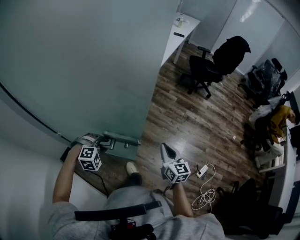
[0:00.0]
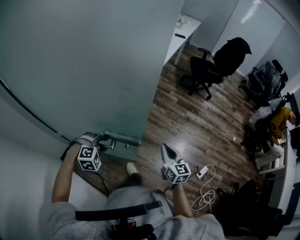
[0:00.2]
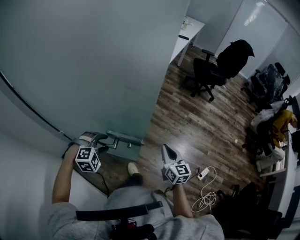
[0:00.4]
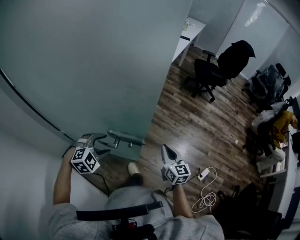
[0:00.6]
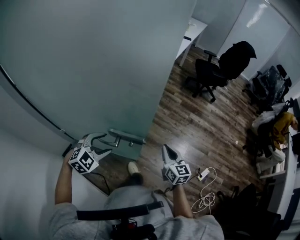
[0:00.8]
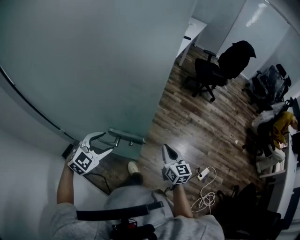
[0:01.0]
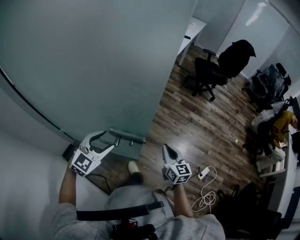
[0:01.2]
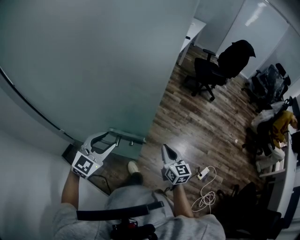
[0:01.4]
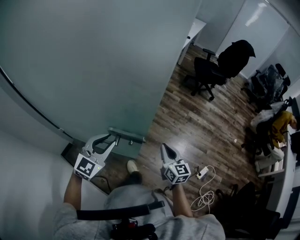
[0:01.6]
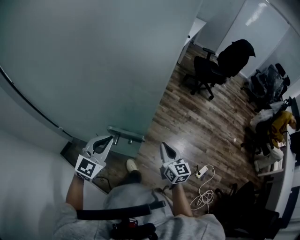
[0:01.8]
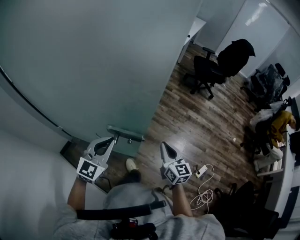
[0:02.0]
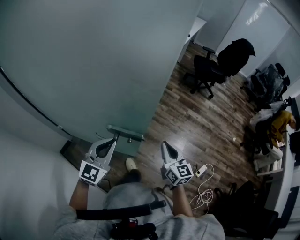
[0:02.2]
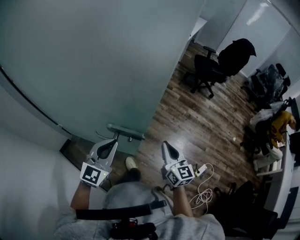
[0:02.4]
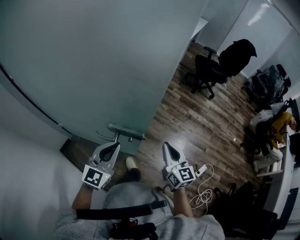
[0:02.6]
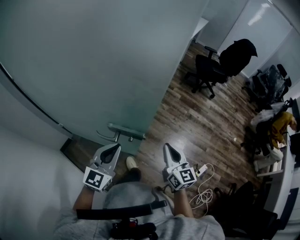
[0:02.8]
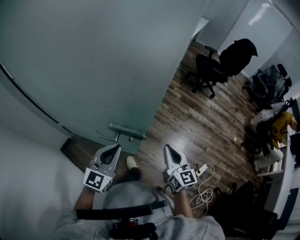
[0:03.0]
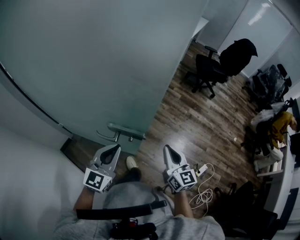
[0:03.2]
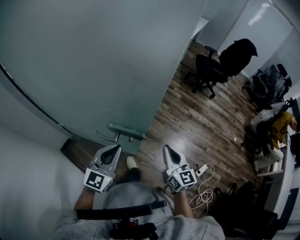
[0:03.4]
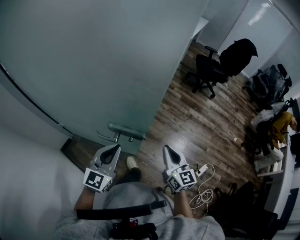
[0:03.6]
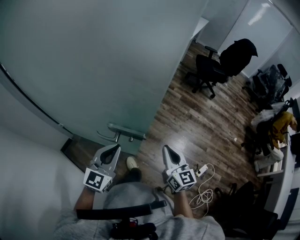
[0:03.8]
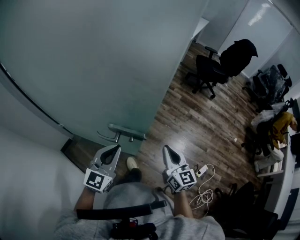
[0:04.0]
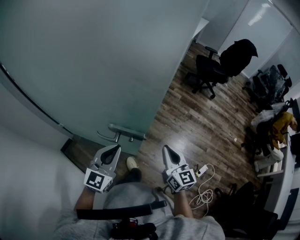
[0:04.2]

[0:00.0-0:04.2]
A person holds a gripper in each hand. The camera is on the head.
0:00.0 to 0:01.4: The left gripper moves upward, roughly 15 cm, and tilts its fingers roughly 40 degrees upward.
0:01.4 to 0:02.8: The left gripper shifts by about 5 cm, and closes up. Meanwhile the right gripper goes approximately 5 cm upward.
0:02.8 to 0:04.2: Both grippers stay put.

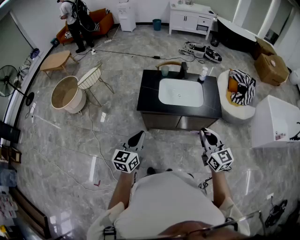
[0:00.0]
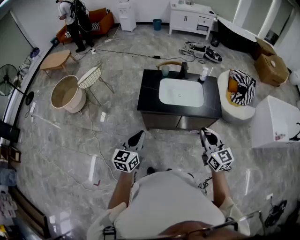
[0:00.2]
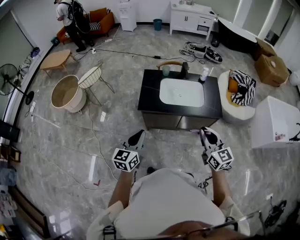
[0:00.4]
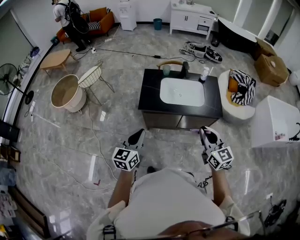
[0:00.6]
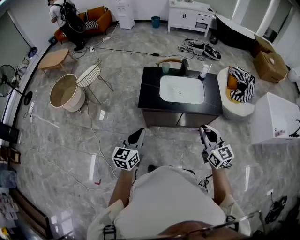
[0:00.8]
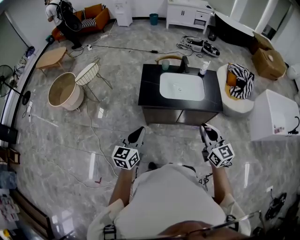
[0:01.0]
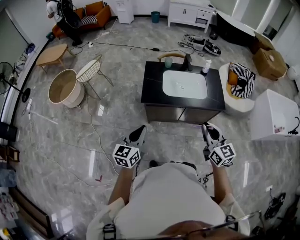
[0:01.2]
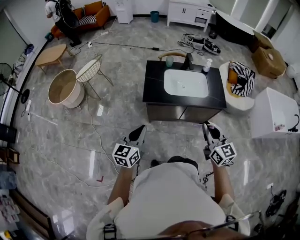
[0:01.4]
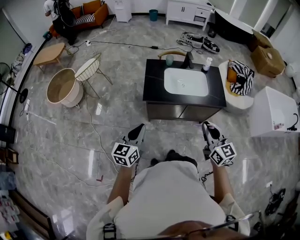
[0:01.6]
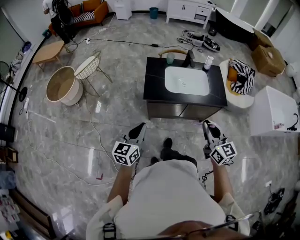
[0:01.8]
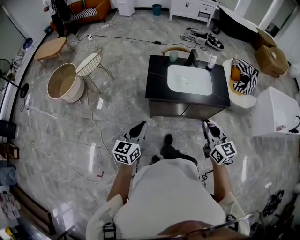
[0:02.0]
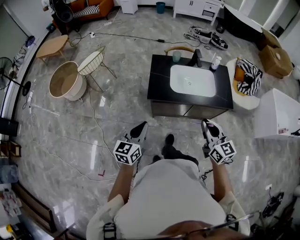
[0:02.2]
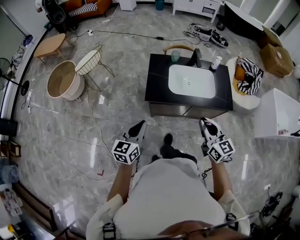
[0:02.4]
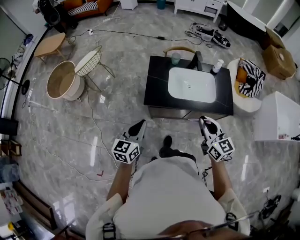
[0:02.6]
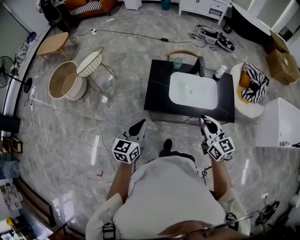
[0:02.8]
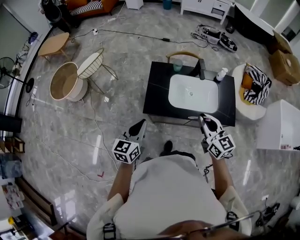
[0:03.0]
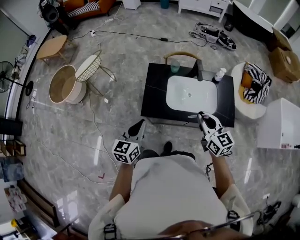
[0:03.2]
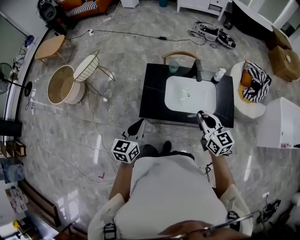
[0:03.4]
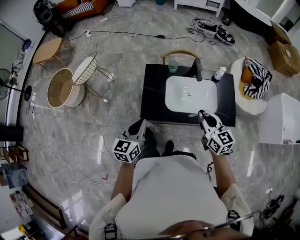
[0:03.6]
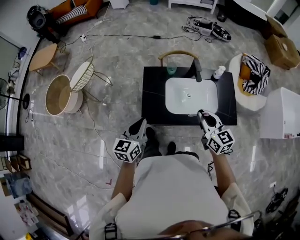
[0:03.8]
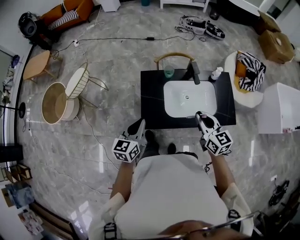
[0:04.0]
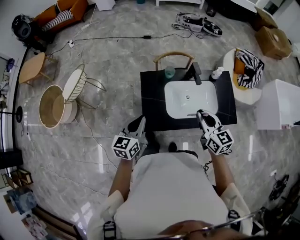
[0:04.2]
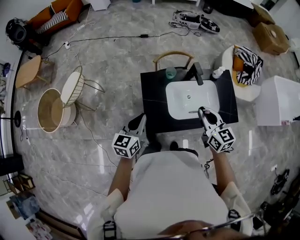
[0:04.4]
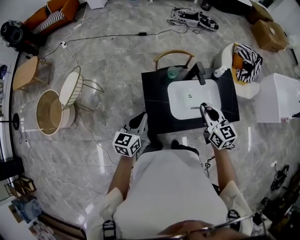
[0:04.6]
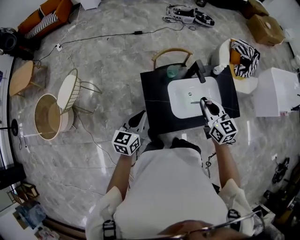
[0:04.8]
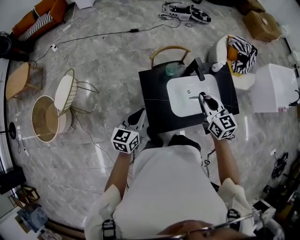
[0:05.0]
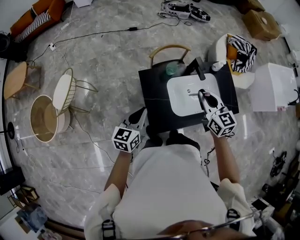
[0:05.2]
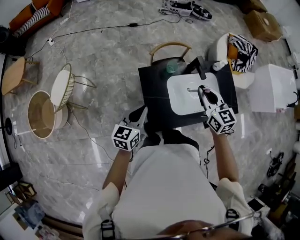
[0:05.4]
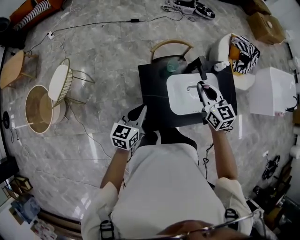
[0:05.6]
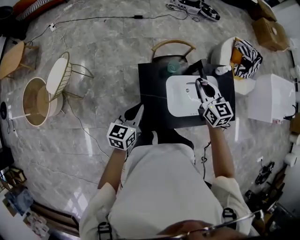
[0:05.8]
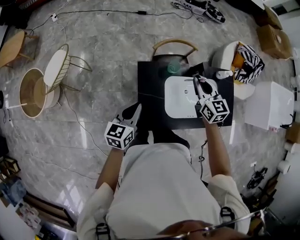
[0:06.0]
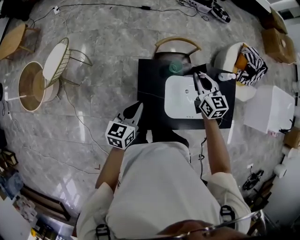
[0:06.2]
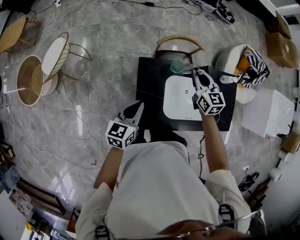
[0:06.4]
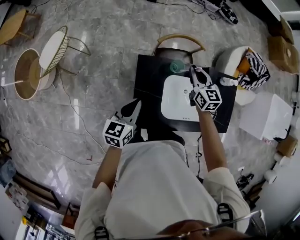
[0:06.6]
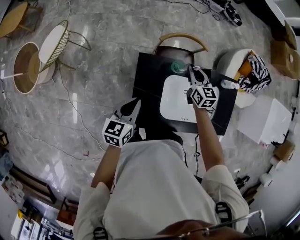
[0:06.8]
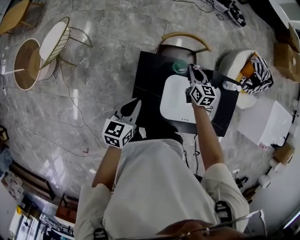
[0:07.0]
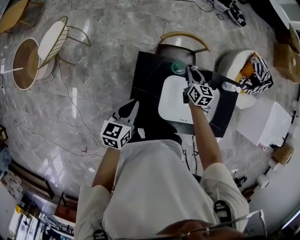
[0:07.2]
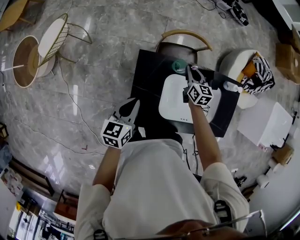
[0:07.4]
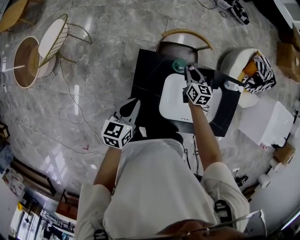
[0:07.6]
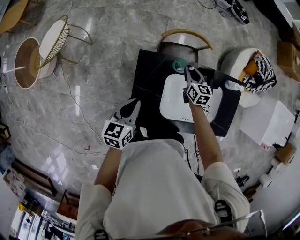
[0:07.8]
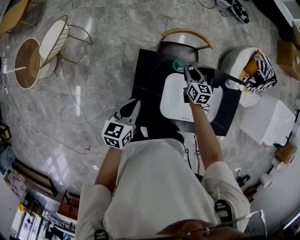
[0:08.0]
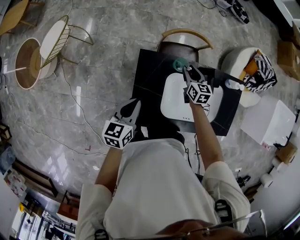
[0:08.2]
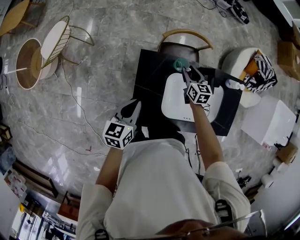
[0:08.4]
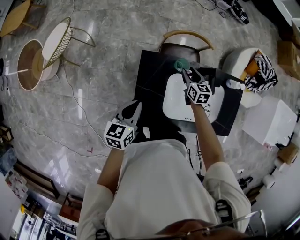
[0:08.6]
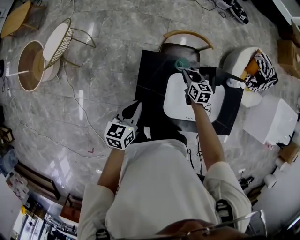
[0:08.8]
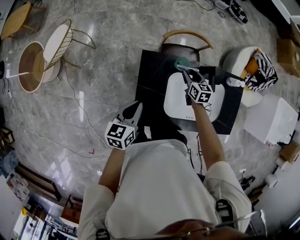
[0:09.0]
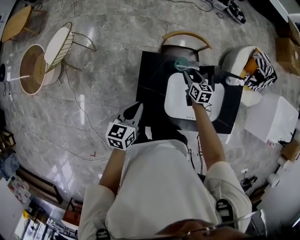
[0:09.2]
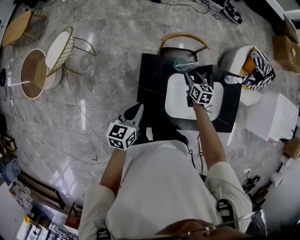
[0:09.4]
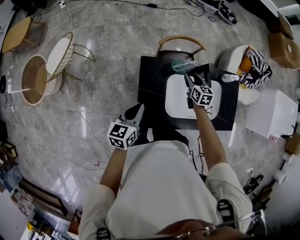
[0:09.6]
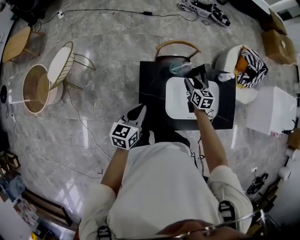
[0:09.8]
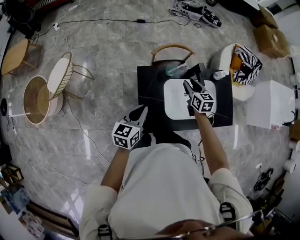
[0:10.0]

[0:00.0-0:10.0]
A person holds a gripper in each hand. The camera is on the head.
0:00.0 to 0:01.4: Both grippers travel together to the left, about 10 cm.
0:01.4 to 0:02.8: The two grippers go roughly 20 cm forward.
0:02.8 to 0:04.2: Both grippers travel together forward, roughly 20 cm.
0:04.2 to 0:05.8: The left gripper travels forward and to the left by approximately 10 cm. The right gripper moves forward and to the left, some 20 cm.
0:05.8 to 0:07.2: The left gripper moves downward, some 5 cm. Meanwhile the right gripper moves downward and forward, some 25 cm.
0:07.2 to 0:08.6: The right gripper changes place by roughly 5 cm, and opens up.
0:08.6 to 0:10.0: The left gripper shifts some 5 cm upward; the right gripper goes about 15 cm upward and backward.

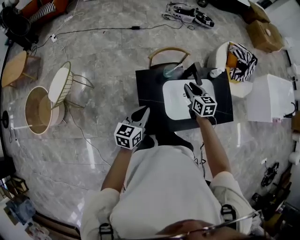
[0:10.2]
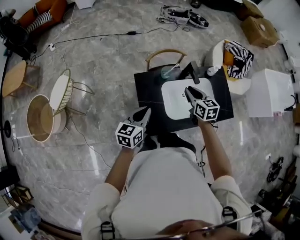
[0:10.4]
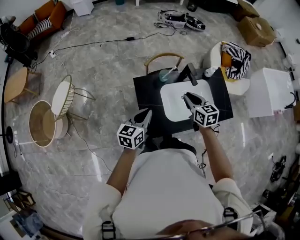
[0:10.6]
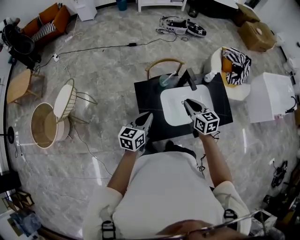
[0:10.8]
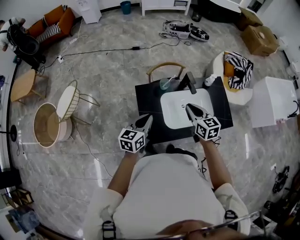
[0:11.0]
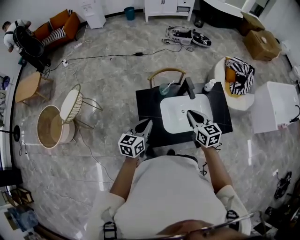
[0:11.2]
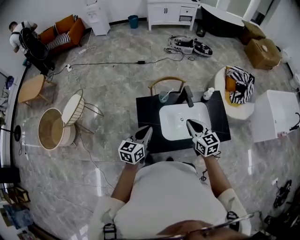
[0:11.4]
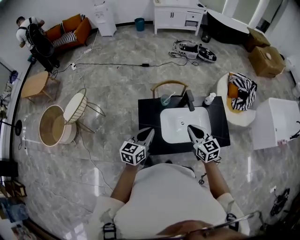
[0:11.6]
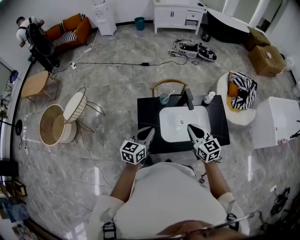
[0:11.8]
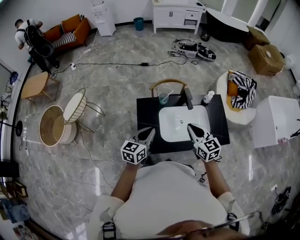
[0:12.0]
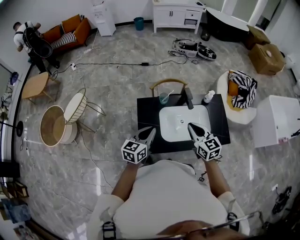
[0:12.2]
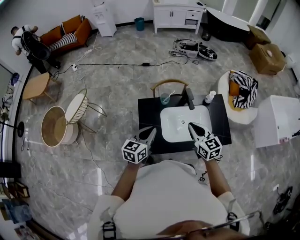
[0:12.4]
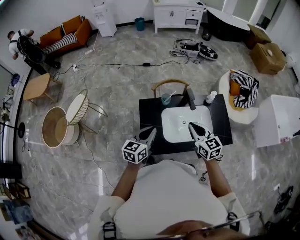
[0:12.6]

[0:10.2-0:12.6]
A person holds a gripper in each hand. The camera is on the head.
0:10.2 to 0:11.4: The left gripper is displaced to the right and upward by some 10 cm. Meanwhile the right gripper moves backward and upward, about 15 cm, and closes up.
0:11.4 to 0:12.6: There are only small adjustments of the grippers.

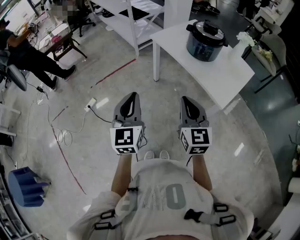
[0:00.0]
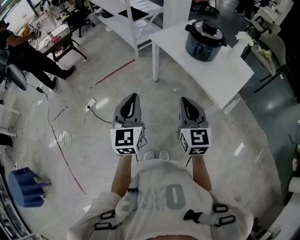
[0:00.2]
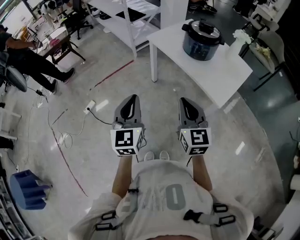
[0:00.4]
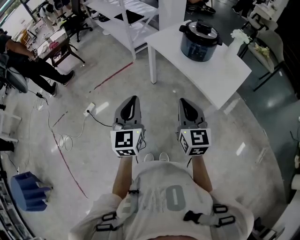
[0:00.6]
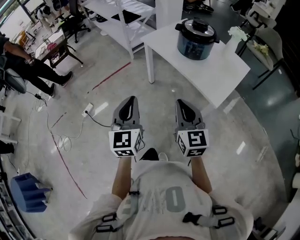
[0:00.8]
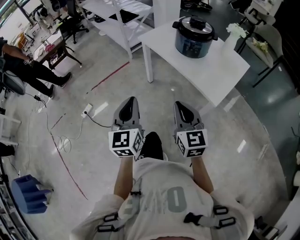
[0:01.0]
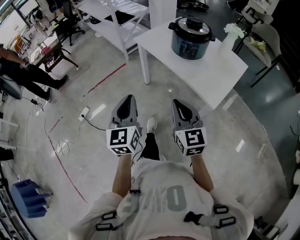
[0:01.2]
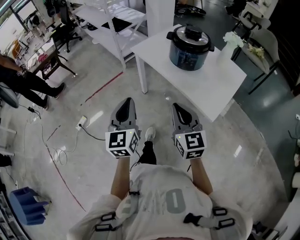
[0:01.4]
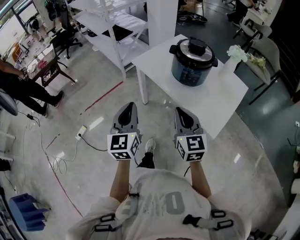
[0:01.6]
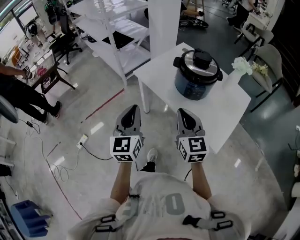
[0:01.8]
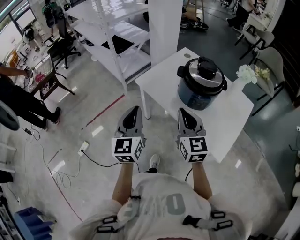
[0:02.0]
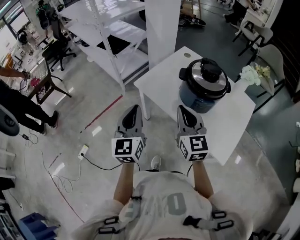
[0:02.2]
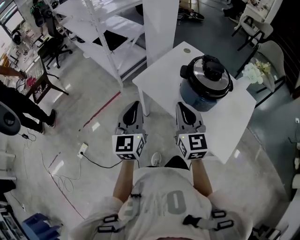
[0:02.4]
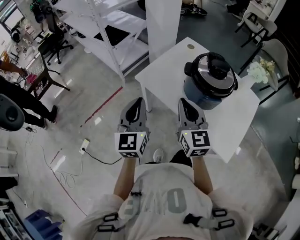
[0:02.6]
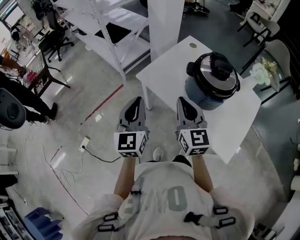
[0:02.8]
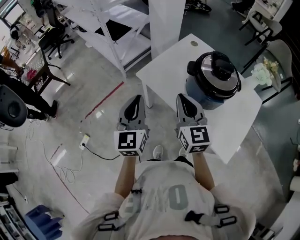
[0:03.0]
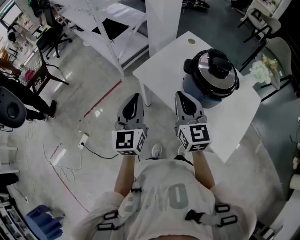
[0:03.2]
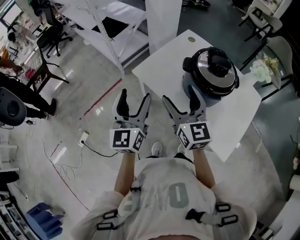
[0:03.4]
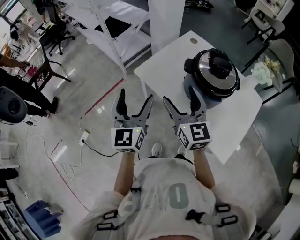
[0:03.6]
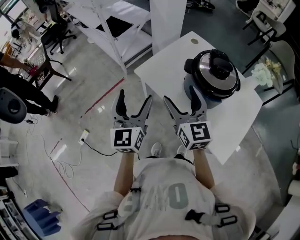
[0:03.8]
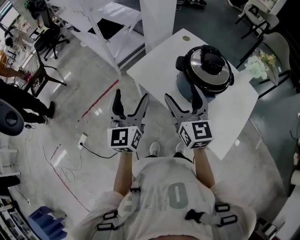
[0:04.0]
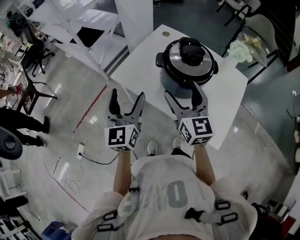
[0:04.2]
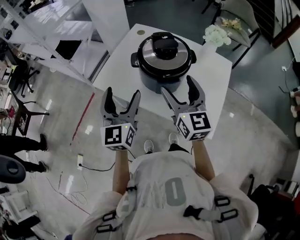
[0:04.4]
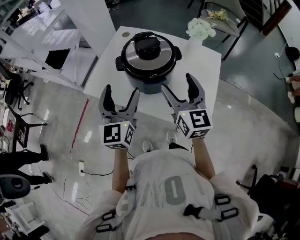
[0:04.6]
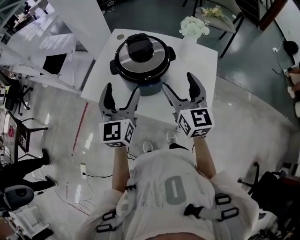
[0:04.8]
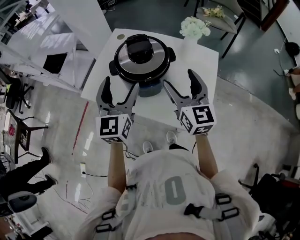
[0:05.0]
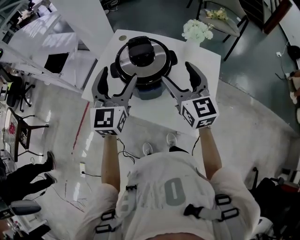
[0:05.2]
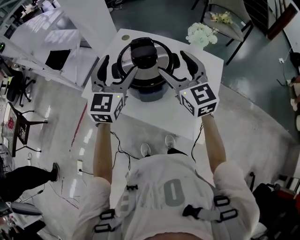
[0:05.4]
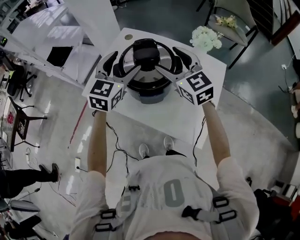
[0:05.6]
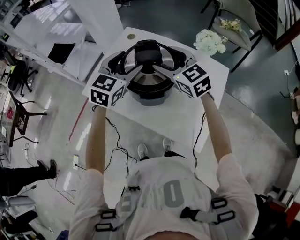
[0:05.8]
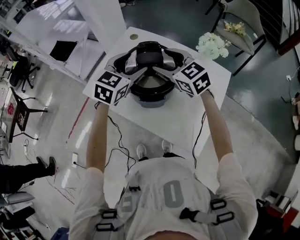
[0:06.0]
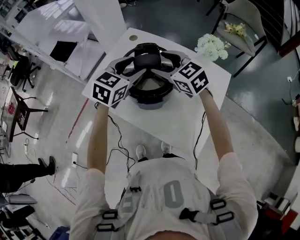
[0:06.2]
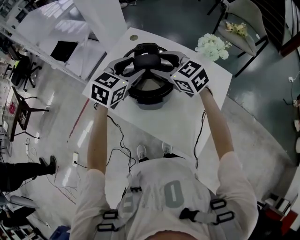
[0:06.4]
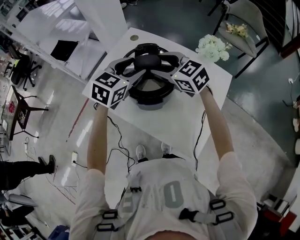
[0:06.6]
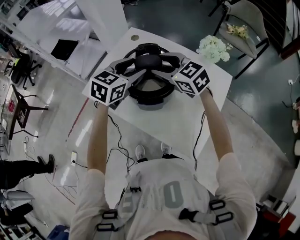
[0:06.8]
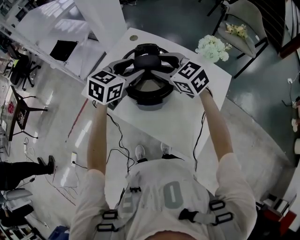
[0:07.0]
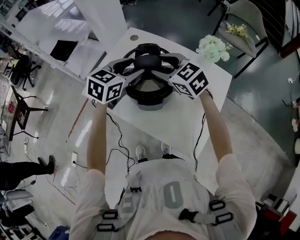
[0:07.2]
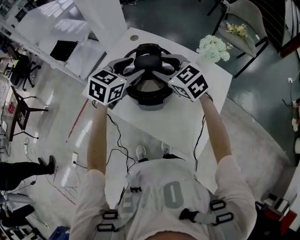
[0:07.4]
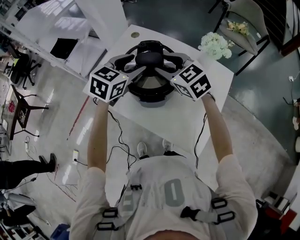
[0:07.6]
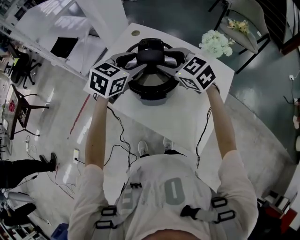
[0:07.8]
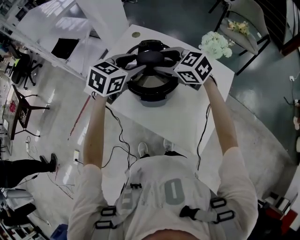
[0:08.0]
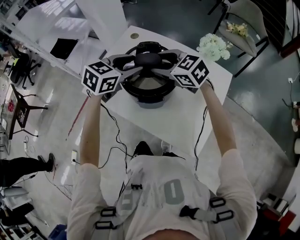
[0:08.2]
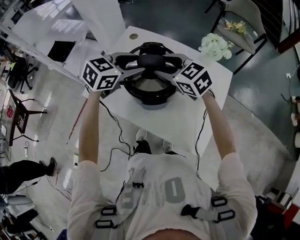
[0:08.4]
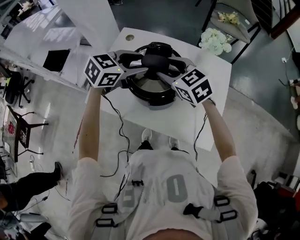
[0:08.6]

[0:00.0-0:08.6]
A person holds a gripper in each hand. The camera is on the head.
0:00.0 to 0:01.4: The two grippers go approximately 10 cm forward and to the right.
0:01.4 to 0:02.8: The two grippers go about 30 cm forward.
0:02.8 to 0:04.4: The grippers both shift to the right by roughly 15 cm. The left gripper opens. The right gripper opens up.
0:04.4 to 0:05.8: The left gripper heads forward and to the right, covering about 25 cm, and swivels roughly 30 degrees; the right gripper goes approximately 15 cm forward, and turns by roughly 30 degrees.
0:05.8 to 0:07.2: The grippers stay close to where they were, moving slightly.
0:07.2 to 0:08.6: The left gripper turns by about 30 degrees.
